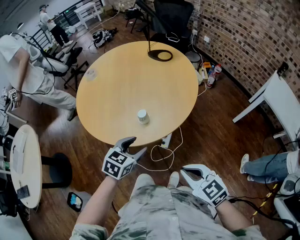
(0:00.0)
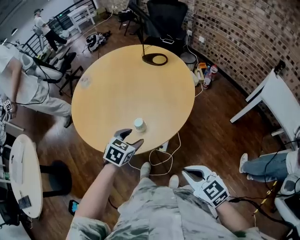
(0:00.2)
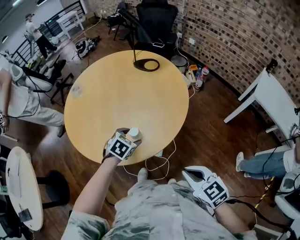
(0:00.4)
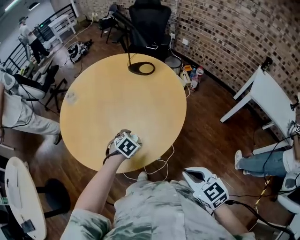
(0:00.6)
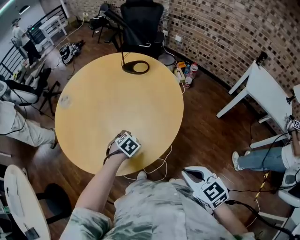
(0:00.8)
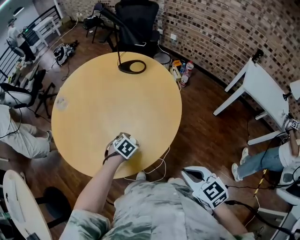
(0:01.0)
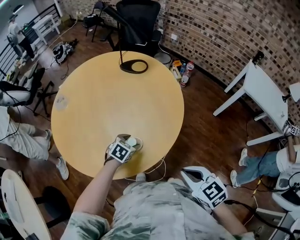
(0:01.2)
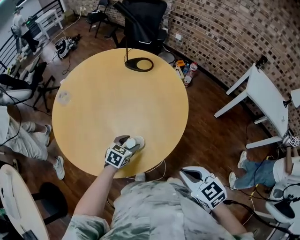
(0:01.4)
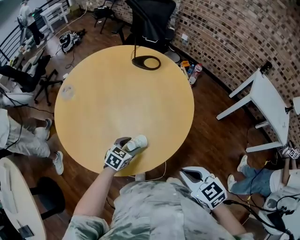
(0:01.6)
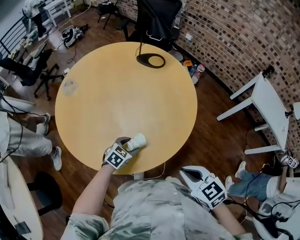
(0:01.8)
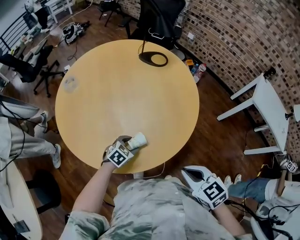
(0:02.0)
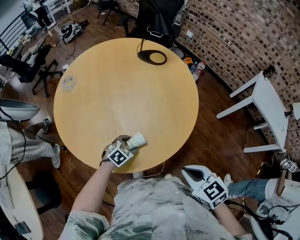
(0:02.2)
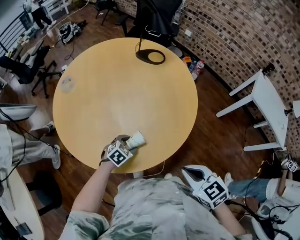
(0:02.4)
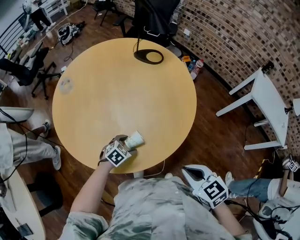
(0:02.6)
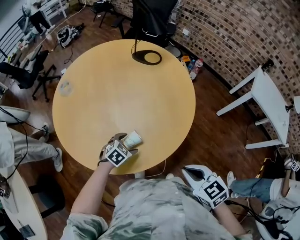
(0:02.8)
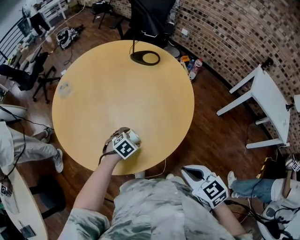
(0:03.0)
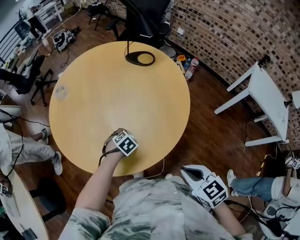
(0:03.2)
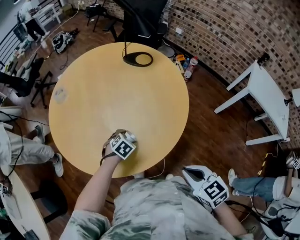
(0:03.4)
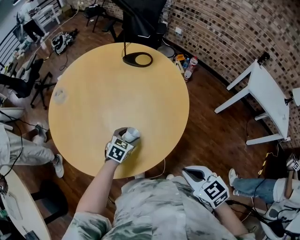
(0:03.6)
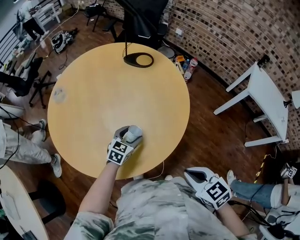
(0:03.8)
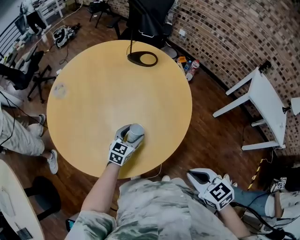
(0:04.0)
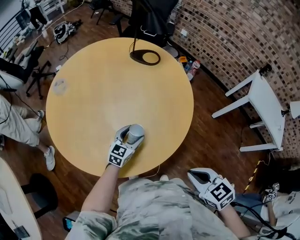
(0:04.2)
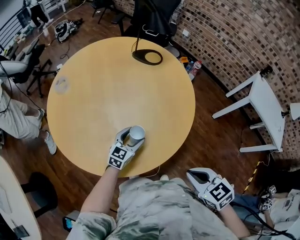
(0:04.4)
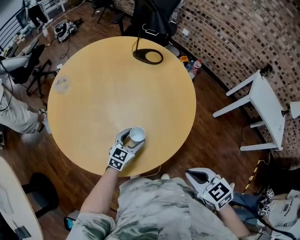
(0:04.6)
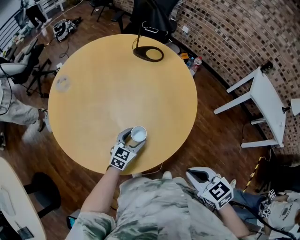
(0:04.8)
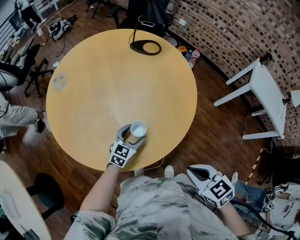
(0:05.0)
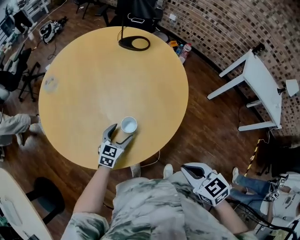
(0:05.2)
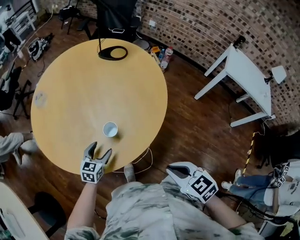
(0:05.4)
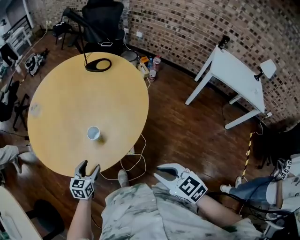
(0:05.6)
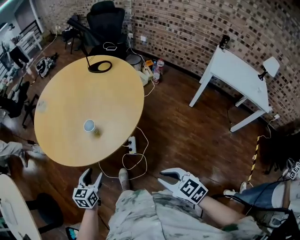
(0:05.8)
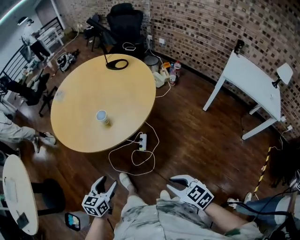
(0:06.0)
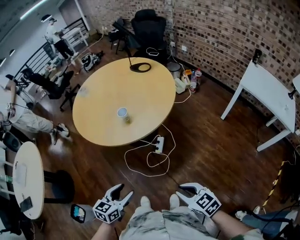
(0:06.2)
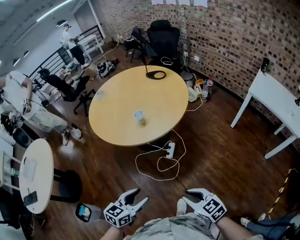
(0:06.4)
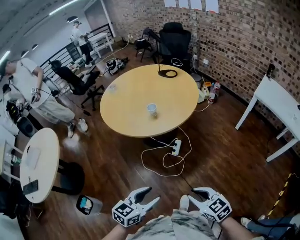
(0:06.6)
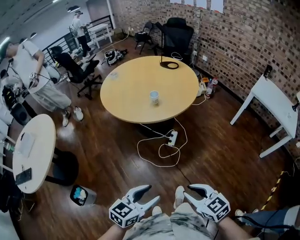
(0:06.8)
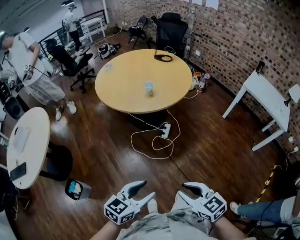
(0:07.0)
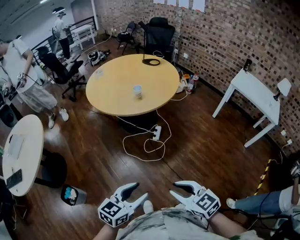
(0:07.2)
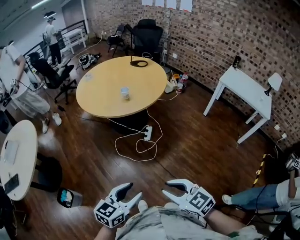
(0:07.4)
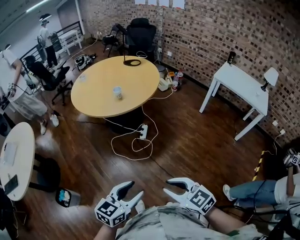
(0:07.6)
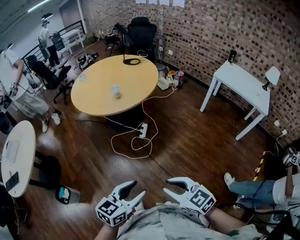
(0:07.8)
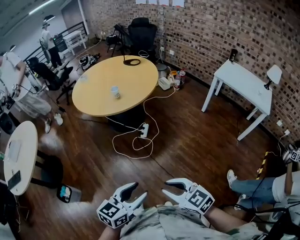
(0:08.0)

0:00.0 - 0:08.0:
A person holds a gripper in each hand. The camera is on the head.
0:00.0 - 0:01.6: The right gripper is displaced forward and to the left by approximately 15 cm, while the left gripper is displaced forward, downward and to the left by roughly 25 cm.
0:01.6 - 0:03.2: The left gripper moves downward, roughly 5 cm, and tilts its fingers roughly 30 degrees downward.
0:03.2 - 0:04.8: The left gripper tips its fingers upward by roughly 50 degrees.
0:04.8 - 0:06.4: Both grippers travel together backward, some 40 cm. The right gripper changes its angle by roughly 20 degrees, while the left gripper swivels about 20 degrees.
0:06.4 - 0:08.0: The right gripper heads backward, covering some 25 cm. The left gripper moves backward and to the right, about 25 cm.

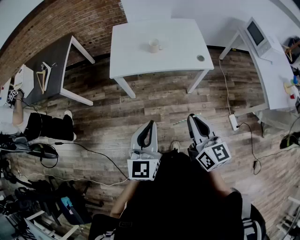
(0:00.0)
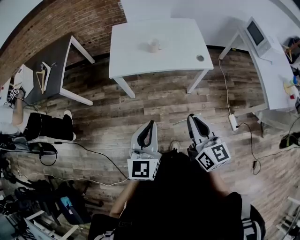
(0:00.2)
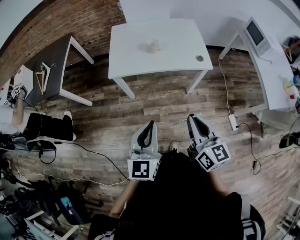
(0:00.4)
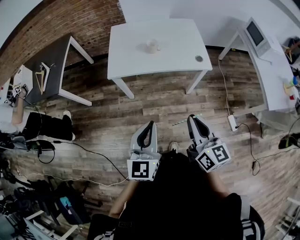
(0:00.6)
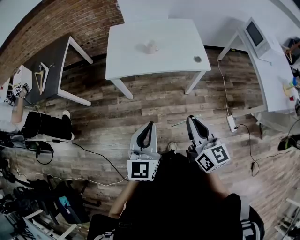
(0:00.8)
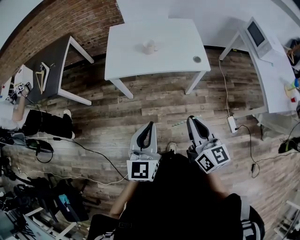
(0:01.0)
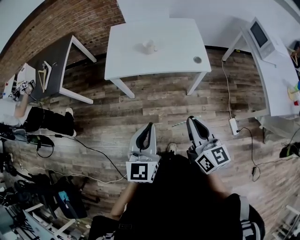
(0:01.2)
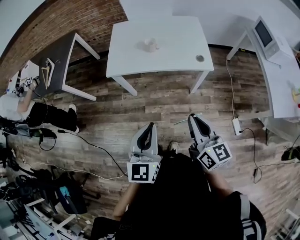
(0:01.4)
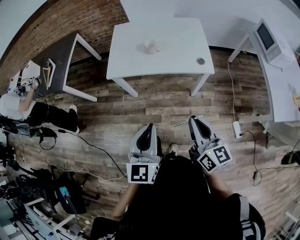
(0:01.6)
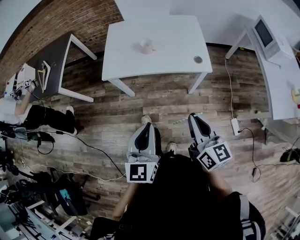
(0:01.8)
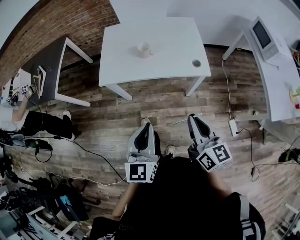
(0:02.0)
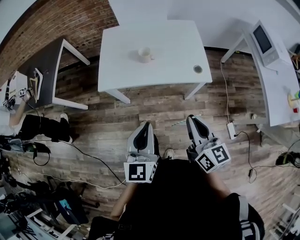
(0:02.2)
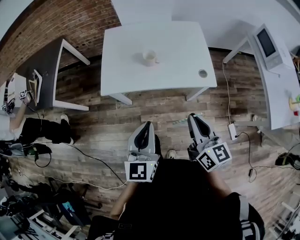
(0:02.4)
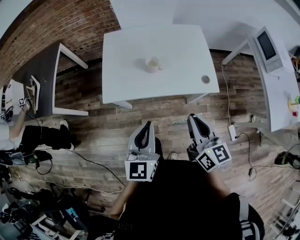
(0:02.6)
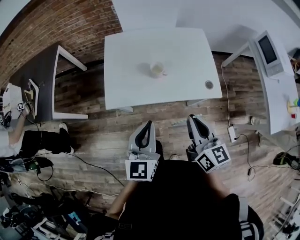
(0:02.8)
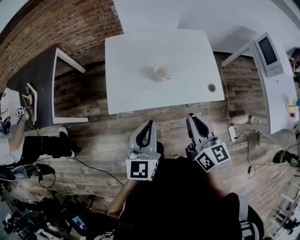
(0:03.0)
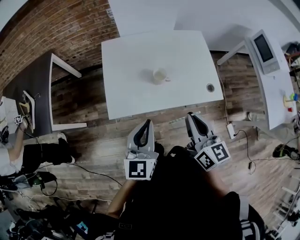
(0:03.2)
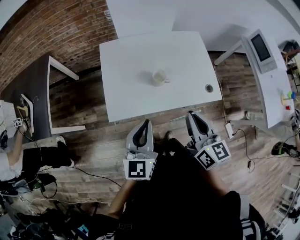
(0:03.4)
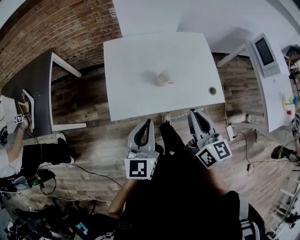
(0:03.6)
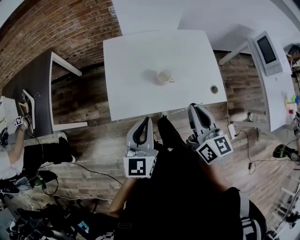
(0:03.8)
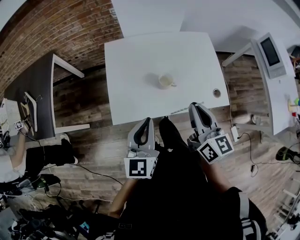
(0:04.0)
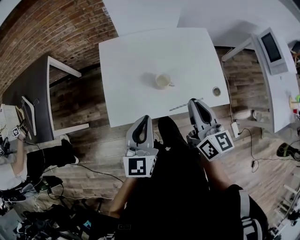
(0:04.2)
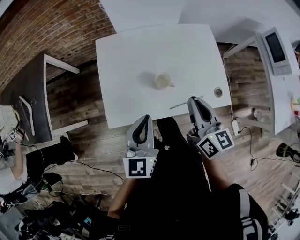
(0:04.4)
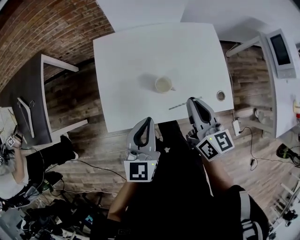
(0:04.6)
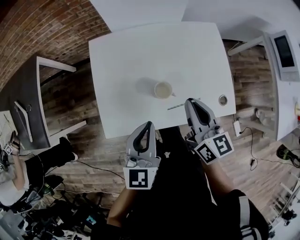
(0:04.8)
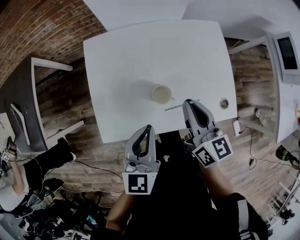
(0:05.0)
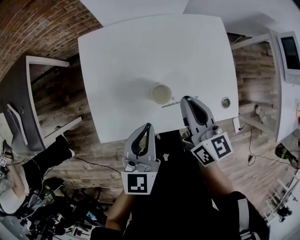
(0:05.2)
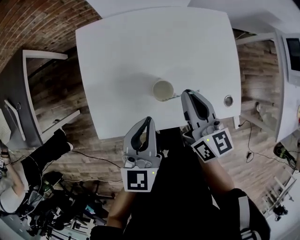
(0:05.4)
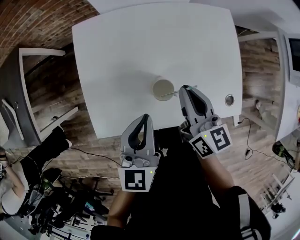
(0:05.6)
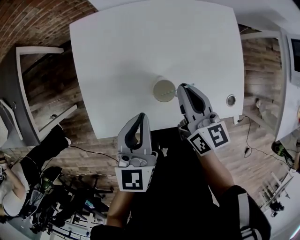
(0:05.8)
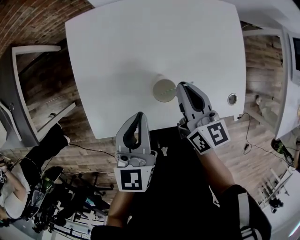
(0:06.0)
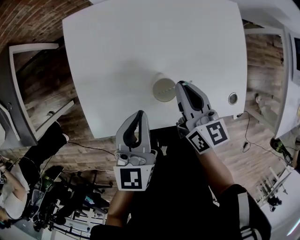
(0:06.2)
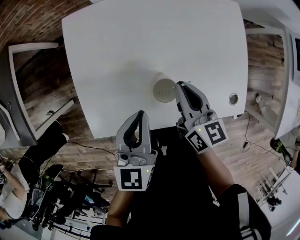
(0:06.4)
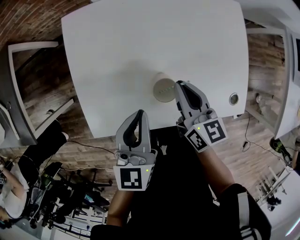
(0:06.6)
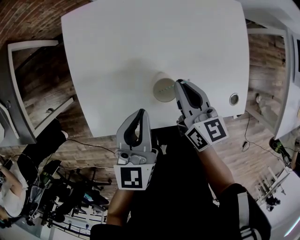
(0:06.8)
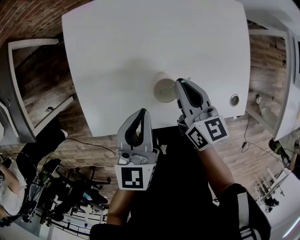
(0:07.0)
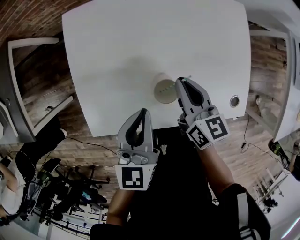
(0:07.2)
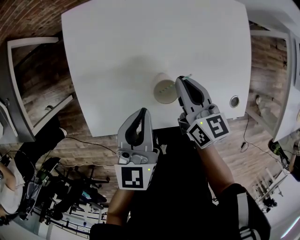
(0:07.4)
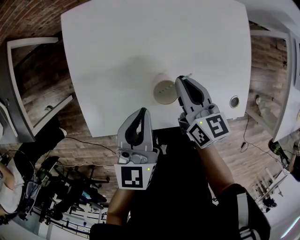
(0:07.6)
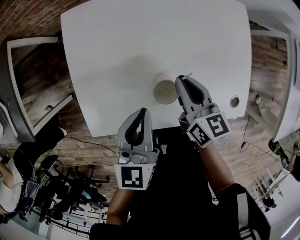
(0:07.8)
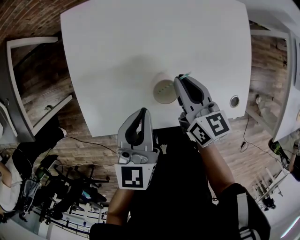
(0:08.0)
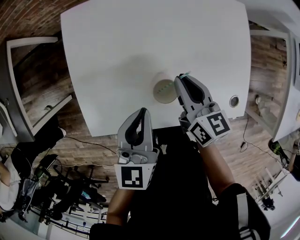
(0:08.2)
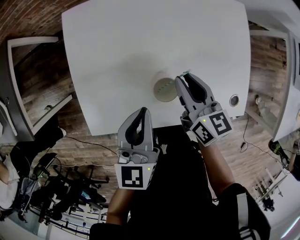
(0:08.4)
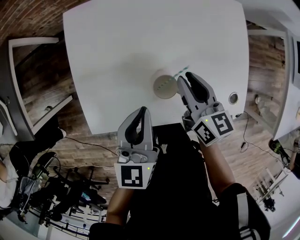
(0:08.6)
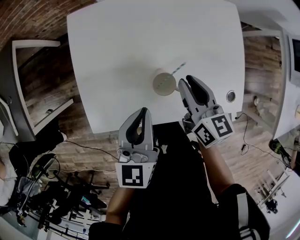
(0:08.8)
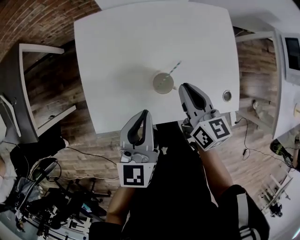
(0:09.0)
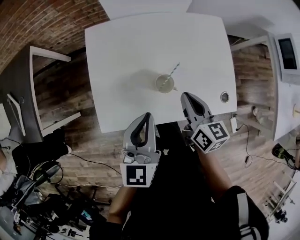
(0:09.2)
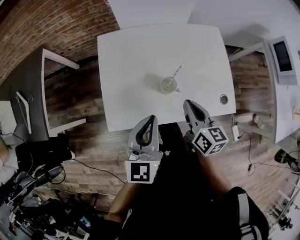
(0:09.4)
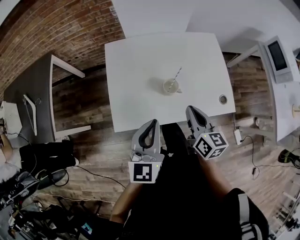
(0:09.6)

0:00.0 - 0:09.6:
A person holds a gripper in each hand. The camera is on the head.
0:00.0 - 0:01.6: Both grippers move to the right, roughly 10 cm.
0:01.6 - 0:03.2: Both grippers travel together forward and to the left, some 35 cm.
0:03.2 - 0:04.8: Both grippers move forward, some 20 cm.
0:04.8 - 0:06.4: The grippers both shift downward and forward by some 15 cm.
0:06.4 - 0:08.0: The grippers make only small movements.
0:08.0 - 0:09.6: The grippers both shift backward and upward by some 20 cm.

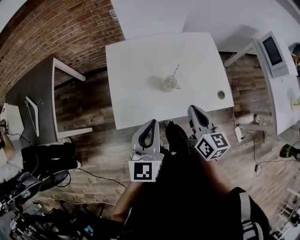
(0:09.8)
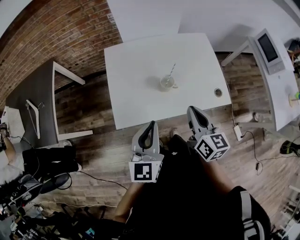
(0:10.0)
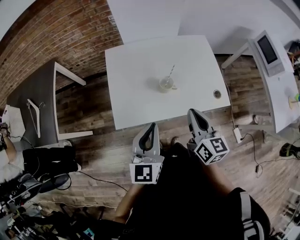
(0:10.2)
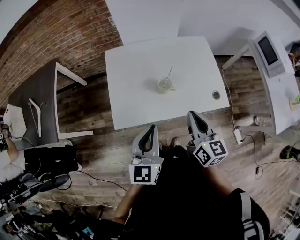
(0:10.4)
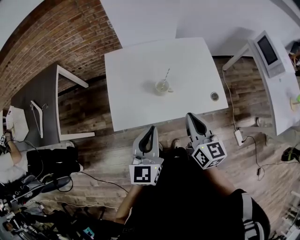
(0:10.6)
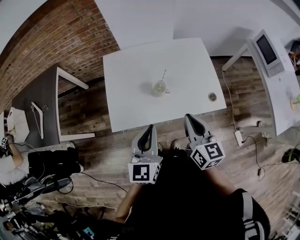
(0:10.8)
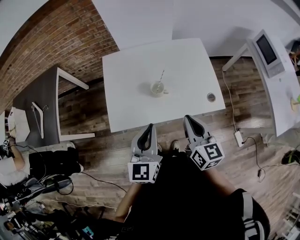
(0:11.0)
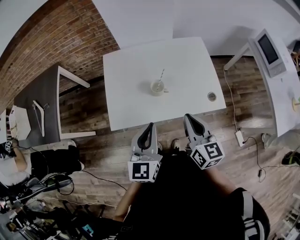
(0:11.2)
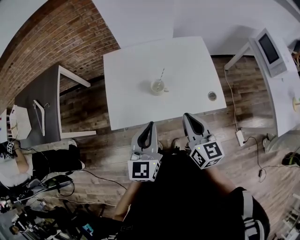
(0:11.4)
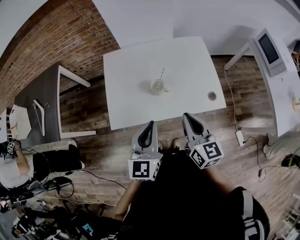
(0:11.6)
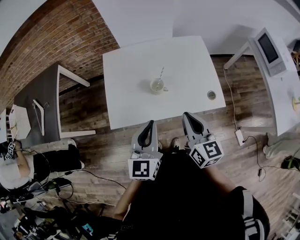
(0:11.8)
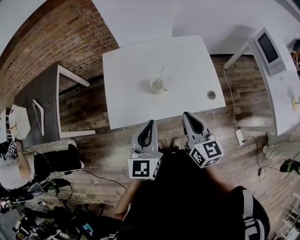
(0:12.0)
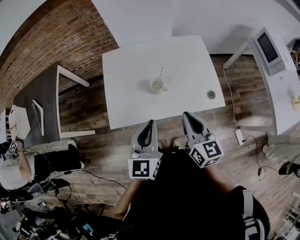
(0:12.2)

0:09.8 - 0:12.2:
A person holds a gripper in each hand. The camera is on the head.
0:09.8 - 0:11.0: The two grippers go roughly 5 cm to the right.
0:11.0 - 0:12.2: Neither gripper changes place.

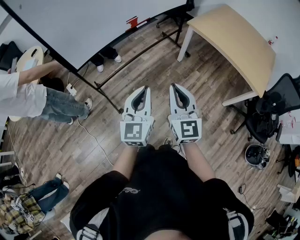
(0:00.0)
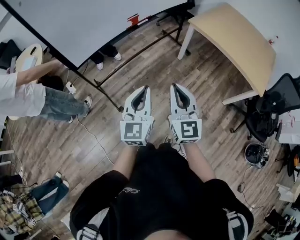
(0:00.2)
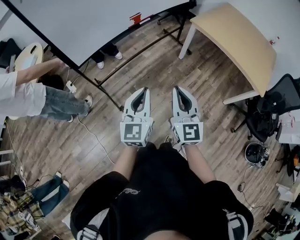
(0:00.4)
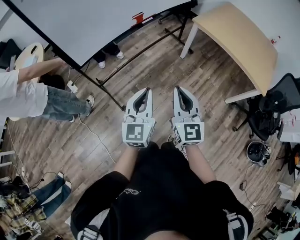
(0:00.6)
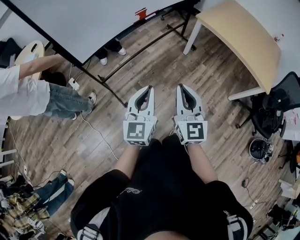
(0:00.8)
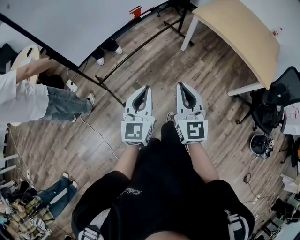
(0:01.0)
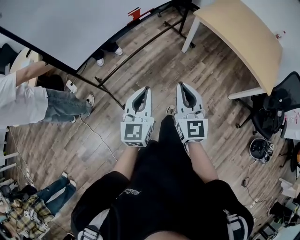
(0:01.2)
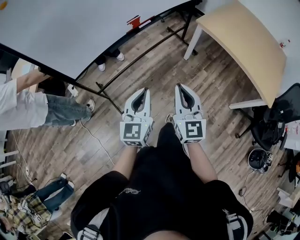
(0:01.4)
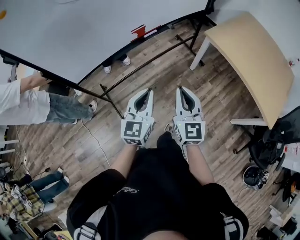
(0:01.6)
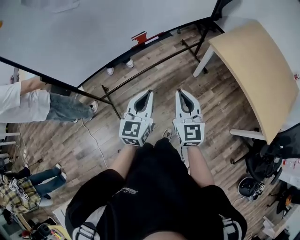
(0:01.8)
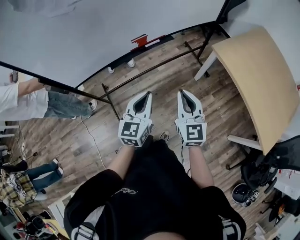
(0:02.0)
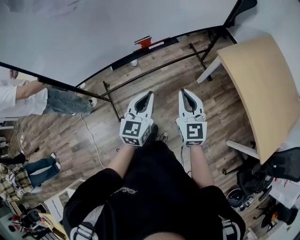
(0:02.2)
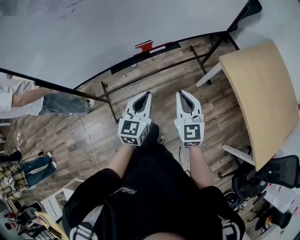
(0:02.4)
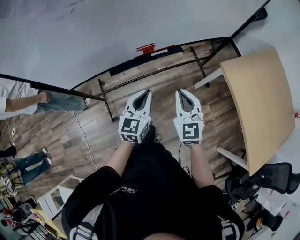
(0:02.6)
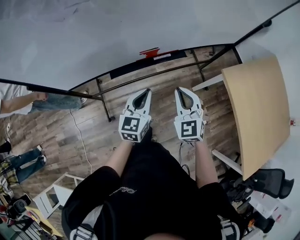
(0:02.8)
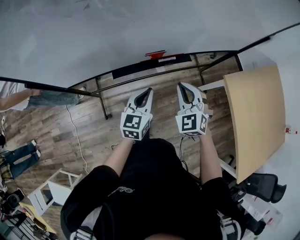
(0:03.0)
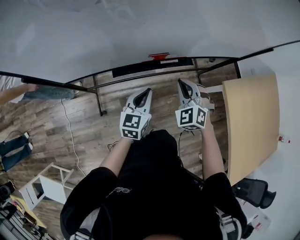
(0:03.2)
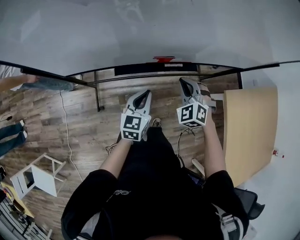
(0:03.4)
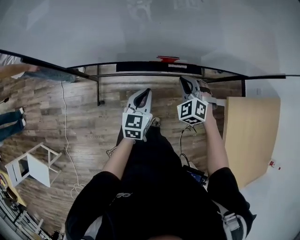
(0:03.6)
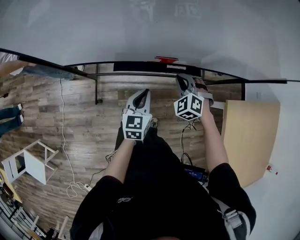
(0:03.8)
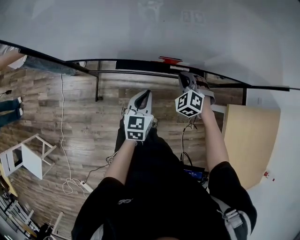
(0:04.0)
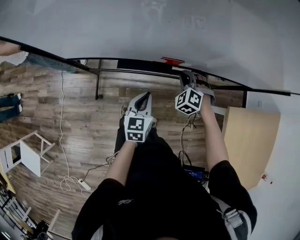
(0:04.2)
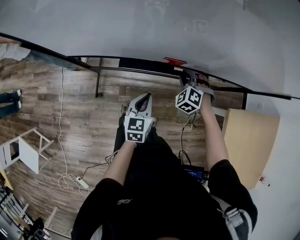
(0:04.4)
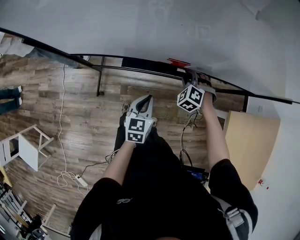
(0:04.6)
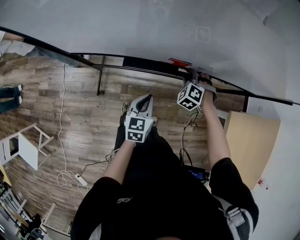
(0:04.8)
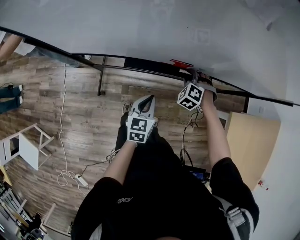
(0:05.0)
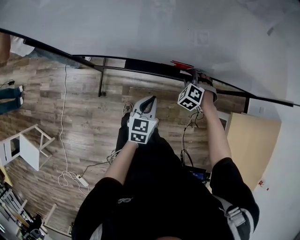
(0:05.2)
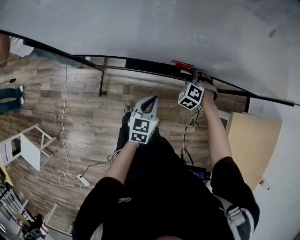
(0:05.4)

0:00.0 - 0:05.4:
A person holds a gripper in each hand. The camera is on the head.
0:00.0 - 0:01.4: The right gripper shifts approximately 15 cm forward. The left gripper travels forward and downward by roughly 15 cm.
0:01.4 - 0:02.8: The two grippers go about 35 cm forward. The right gripper rotates approximately 40 degrees.
0:02.8 - 0:04.0: The right gripper moves forward and downward, some 25 cm, and changes its angle by some 50 degrees. The left gripper moves downward and forward, some 10 cm, and turns by some 30 degrees.
0:04.0 - 0:05.4: The right gripper is displaced downward by some 5 cm, and opens up.
